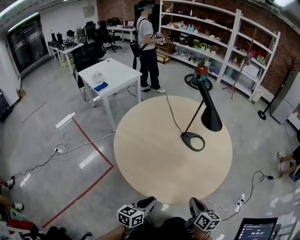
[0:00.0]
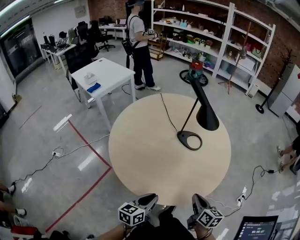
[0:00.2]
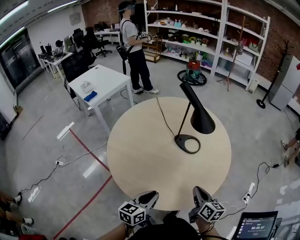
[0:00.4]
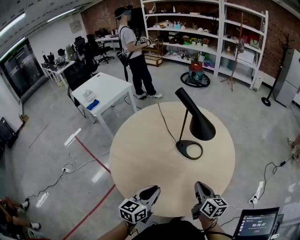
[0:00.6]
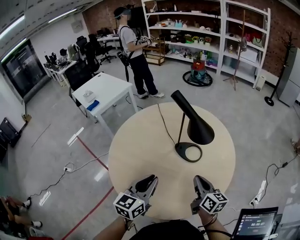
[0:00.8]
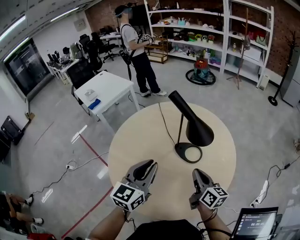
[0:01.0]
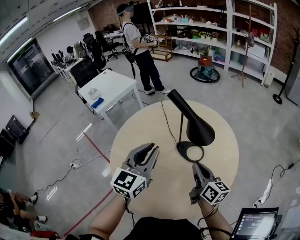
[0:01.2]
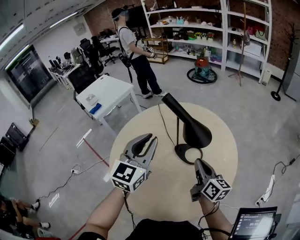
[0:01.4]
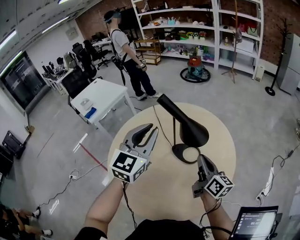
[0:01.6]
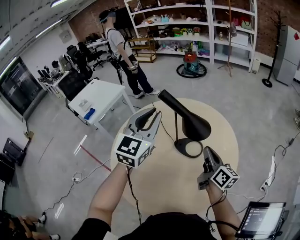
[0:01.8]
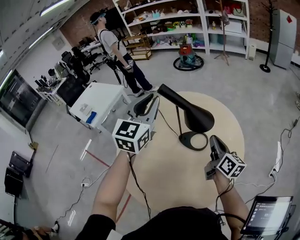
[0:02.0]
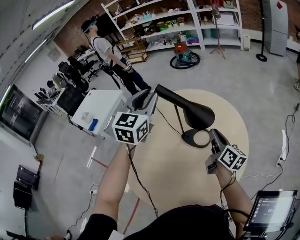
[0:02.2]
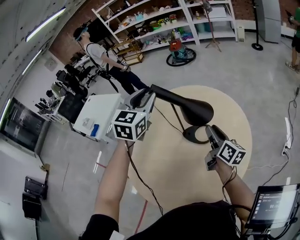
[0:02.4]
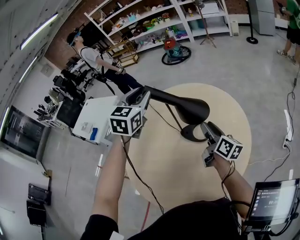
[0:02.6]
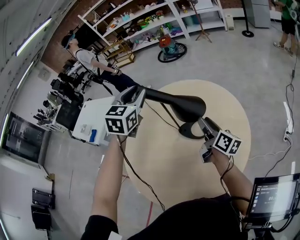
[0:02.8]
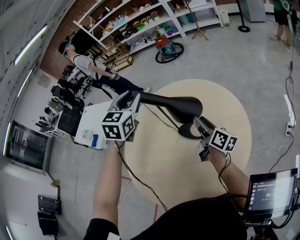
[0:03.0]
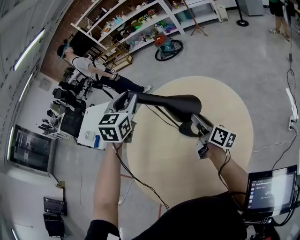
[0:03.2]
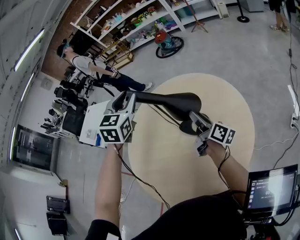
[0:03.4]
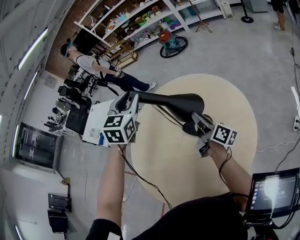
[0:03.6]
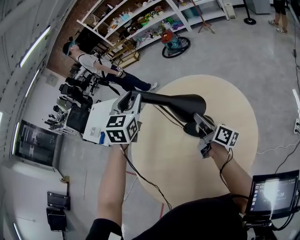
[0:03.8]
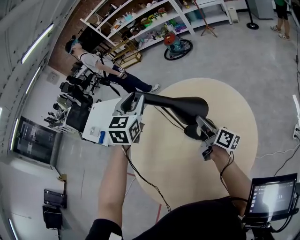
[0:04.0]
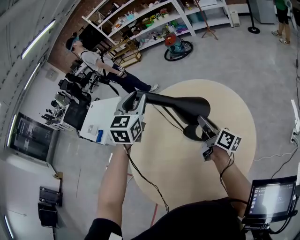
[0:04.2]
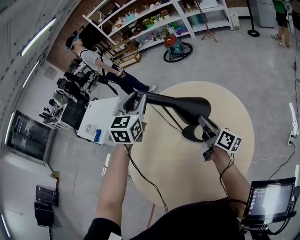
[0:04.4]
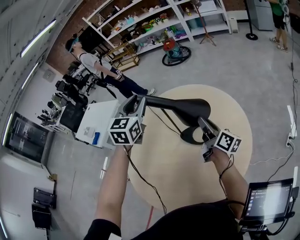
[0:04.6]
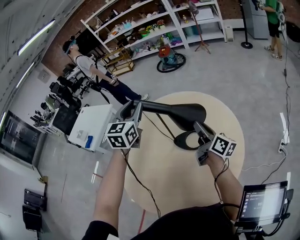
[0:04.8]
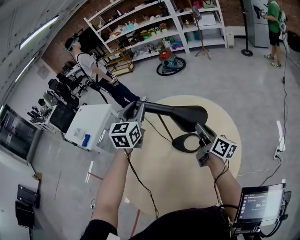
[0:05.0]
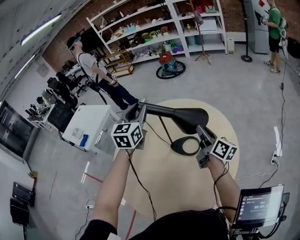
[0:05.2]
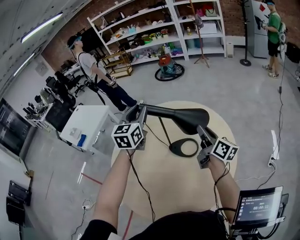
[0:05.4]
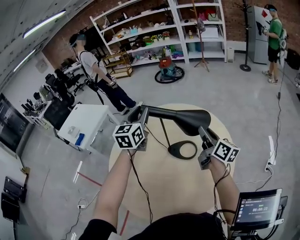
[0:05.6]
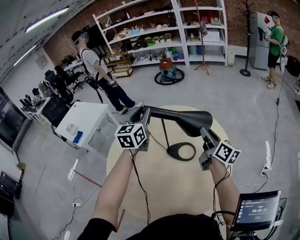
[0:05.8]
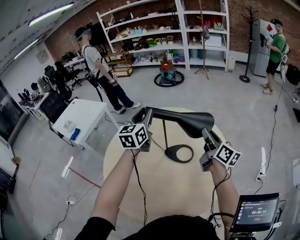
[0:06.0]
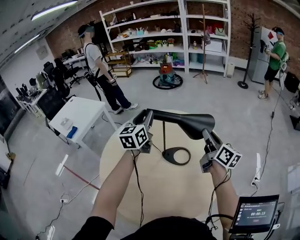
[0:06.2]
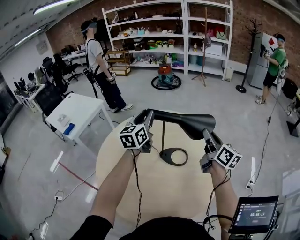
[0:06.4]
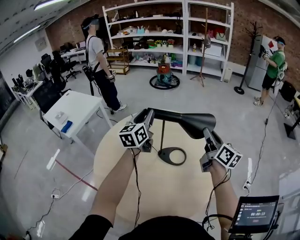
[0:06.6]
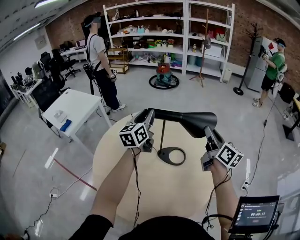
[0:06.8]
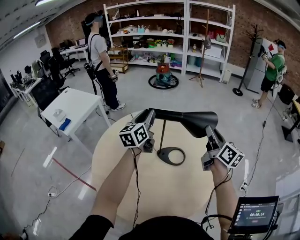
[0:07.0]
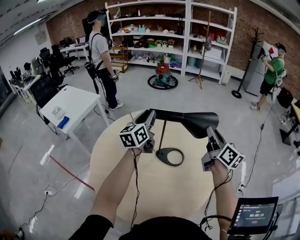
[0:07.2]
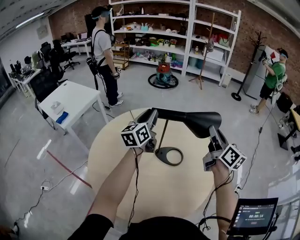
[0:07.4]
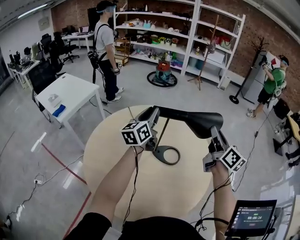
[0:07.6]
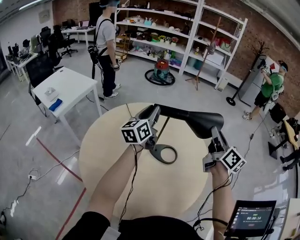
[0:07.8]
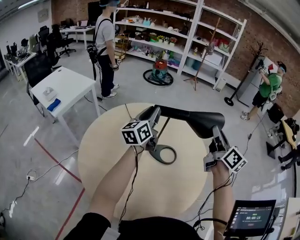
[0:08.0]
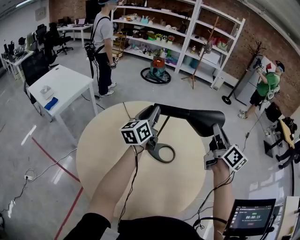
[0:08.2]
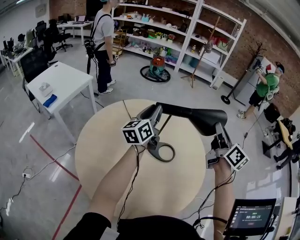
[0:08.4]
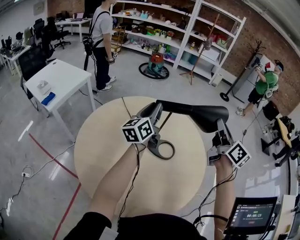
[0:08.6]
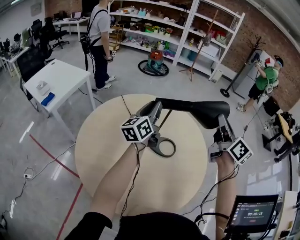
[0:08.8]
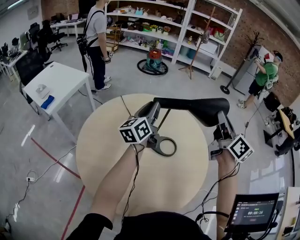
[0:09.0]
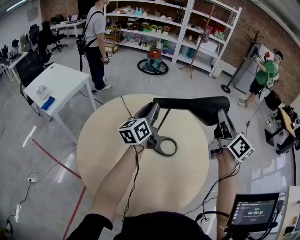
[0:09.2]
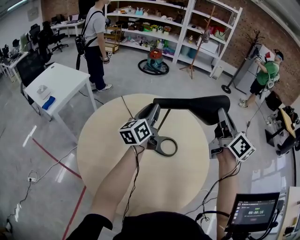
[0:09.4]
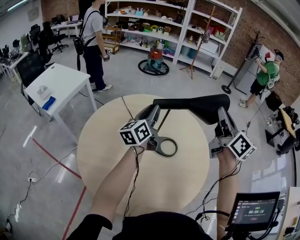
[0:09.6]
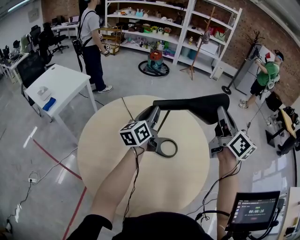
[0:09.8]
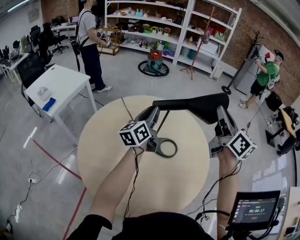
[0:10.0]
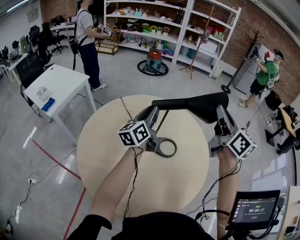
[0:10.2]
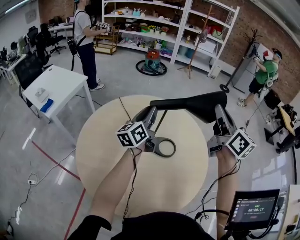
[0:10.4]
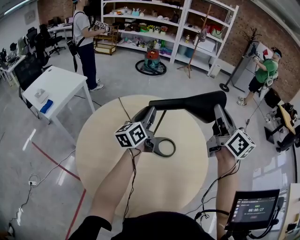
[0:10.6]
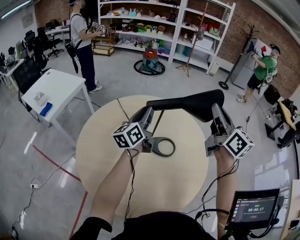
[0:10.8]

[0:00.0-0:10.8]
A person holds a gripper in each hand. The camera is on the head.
0:00.0 to 0:01.6: The grippers both shift forward and upward by some 40 cm. The right gripper swivels some 30 degrees. Meanwhile the left gripper rotates around the line of its fingers by some 50 degrees, clockwise from behind.
0:01.6 to 0:03.0: The left gripper is displaced forward by some 15 cm, while the right gripper travels forward by approximately 5 cm, changes its angle by about 20 degrees, and opens.
0:03.0 to 0:04.6: There are only small adjustments of the grippers.
0:04.6 to 0:06.2: The left gripper shifts some 5 cm downward, and swivels roughly 30 degrees. The right gripper travels upward by approximately 5 cm, and swivels approximately 20 degrees.
0:06.2 to 0:07.8: The left gripper swivels about 20 degrees; the right gripper moves upward, some 10 cm.
0:07.8 to 0:09.2: The right gripper moves upward, some 5 cm.
0:09.2 to 0:10.8: The grippers move only a little.

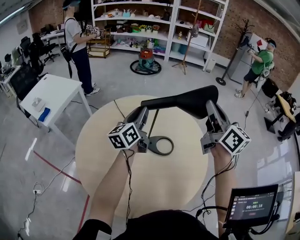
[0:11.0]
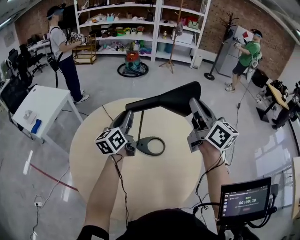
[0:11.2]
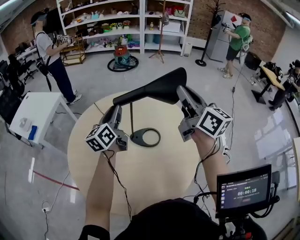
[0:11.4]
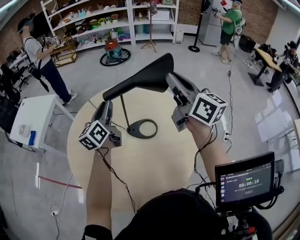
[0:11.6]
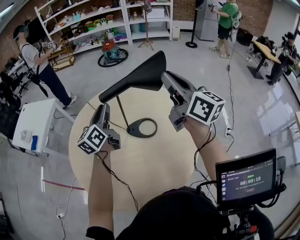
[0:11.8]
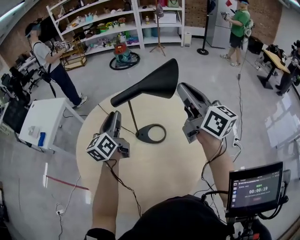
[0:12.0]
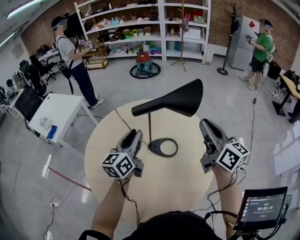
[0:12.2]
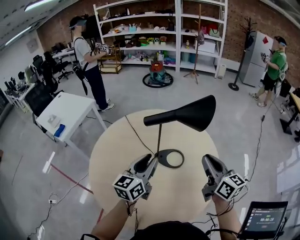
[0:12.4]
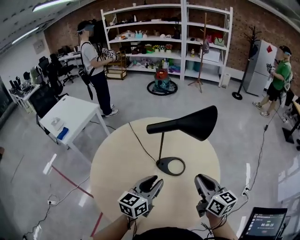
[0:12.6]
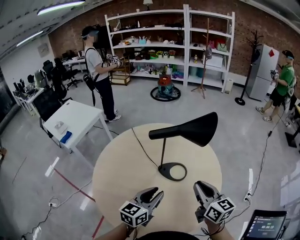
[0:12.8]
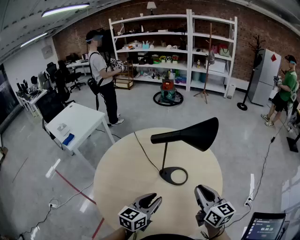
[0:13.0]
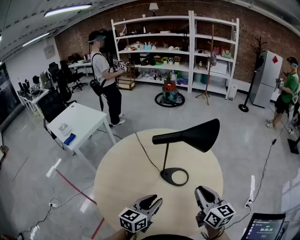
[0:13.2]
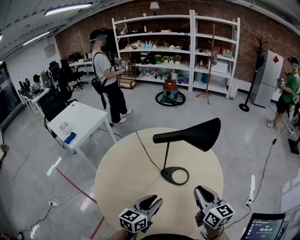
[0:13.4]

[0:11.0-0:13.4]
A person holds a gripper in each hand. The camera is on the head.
0:11.0 to 0:12.2: The left gripper goes roughly 10 cm backward. The right gripper goes some 10 cm backward and downward.
0:12.2 to 0:13.4: The left gripper is displaced backward and downward by roughly 20 cm. Meanwhile the right gripper shifts about 15 cm downward, backward and to the left.

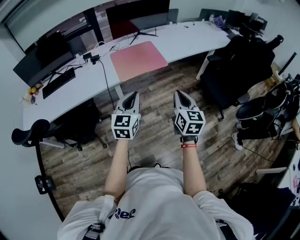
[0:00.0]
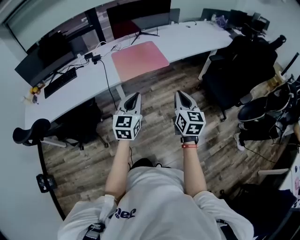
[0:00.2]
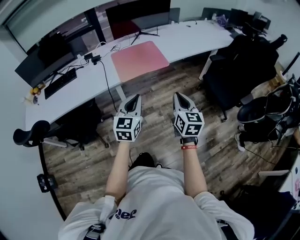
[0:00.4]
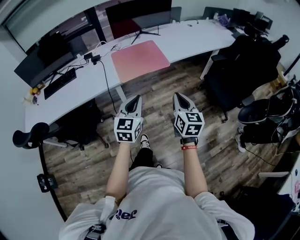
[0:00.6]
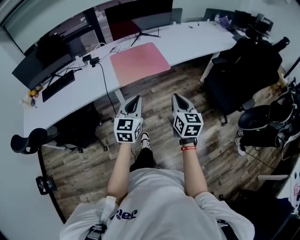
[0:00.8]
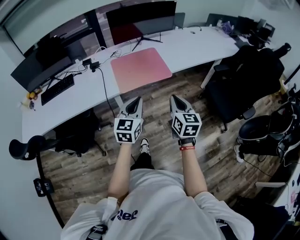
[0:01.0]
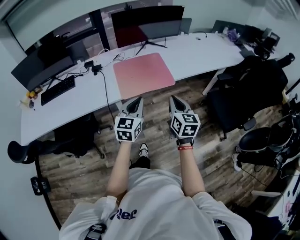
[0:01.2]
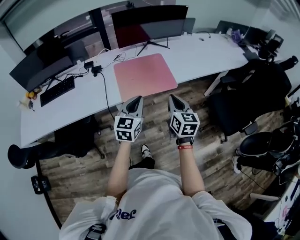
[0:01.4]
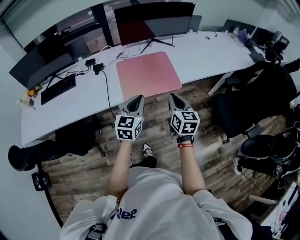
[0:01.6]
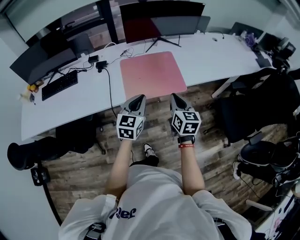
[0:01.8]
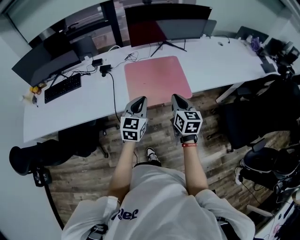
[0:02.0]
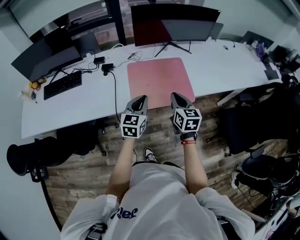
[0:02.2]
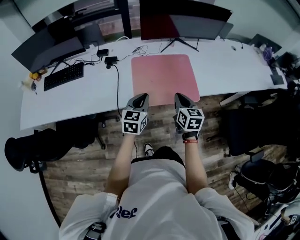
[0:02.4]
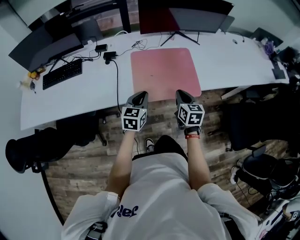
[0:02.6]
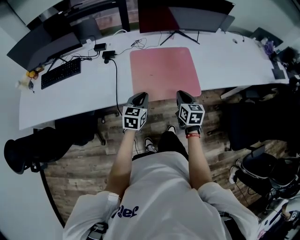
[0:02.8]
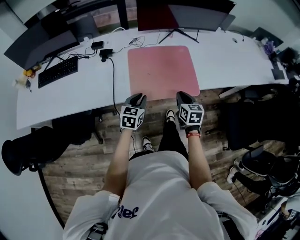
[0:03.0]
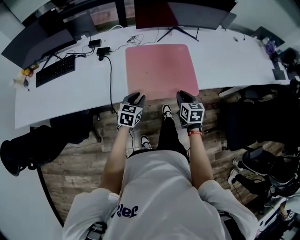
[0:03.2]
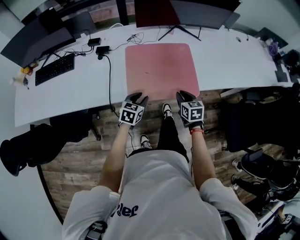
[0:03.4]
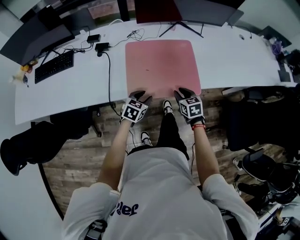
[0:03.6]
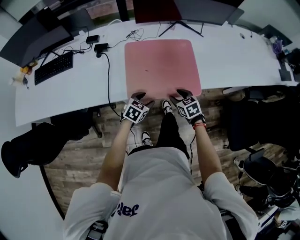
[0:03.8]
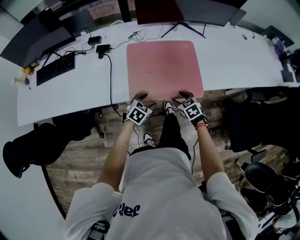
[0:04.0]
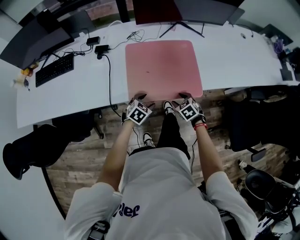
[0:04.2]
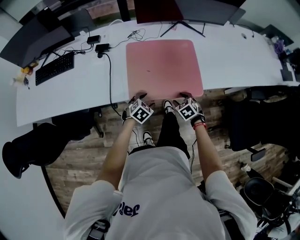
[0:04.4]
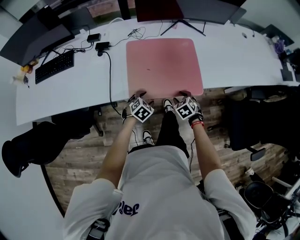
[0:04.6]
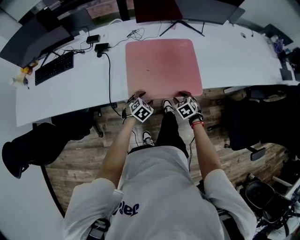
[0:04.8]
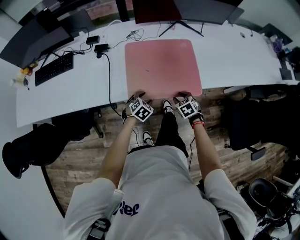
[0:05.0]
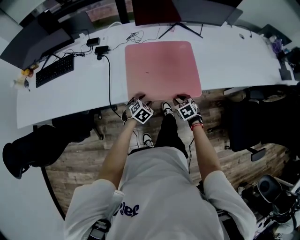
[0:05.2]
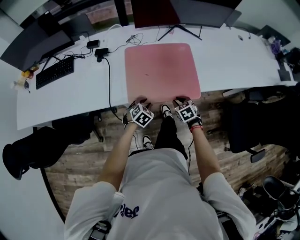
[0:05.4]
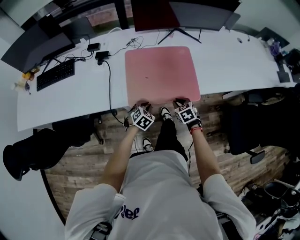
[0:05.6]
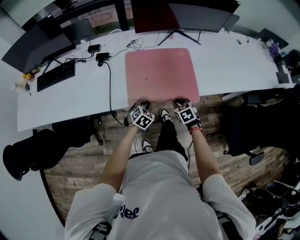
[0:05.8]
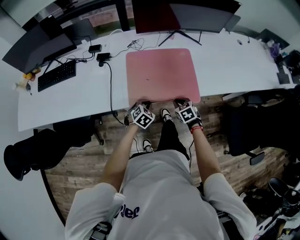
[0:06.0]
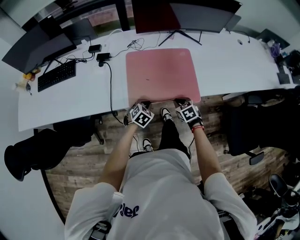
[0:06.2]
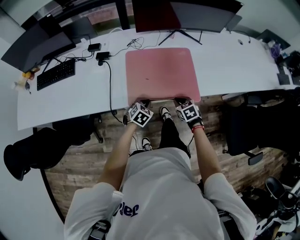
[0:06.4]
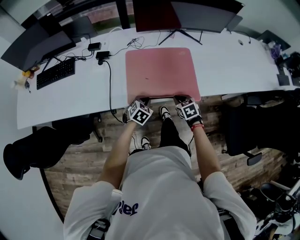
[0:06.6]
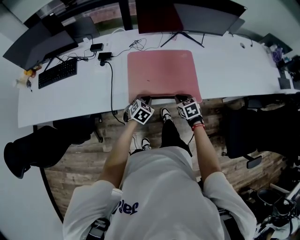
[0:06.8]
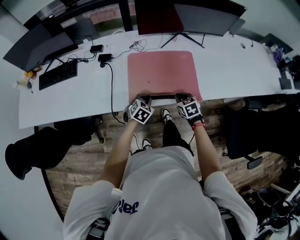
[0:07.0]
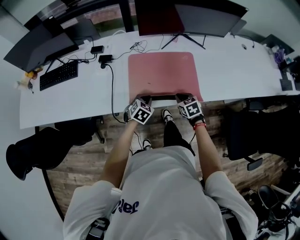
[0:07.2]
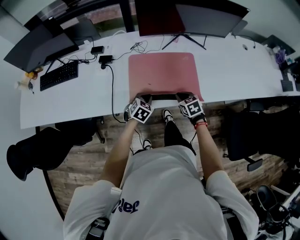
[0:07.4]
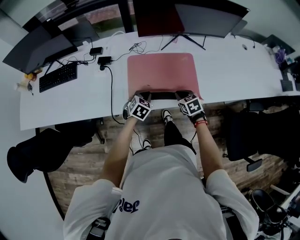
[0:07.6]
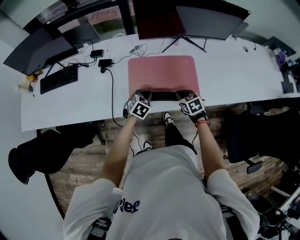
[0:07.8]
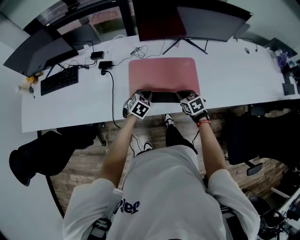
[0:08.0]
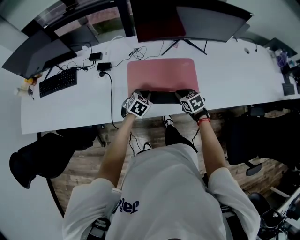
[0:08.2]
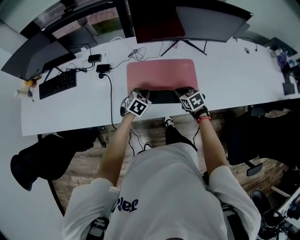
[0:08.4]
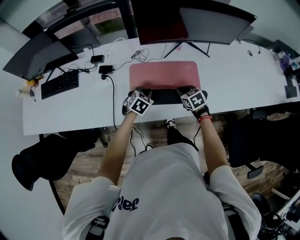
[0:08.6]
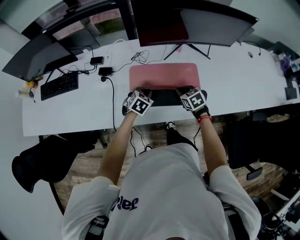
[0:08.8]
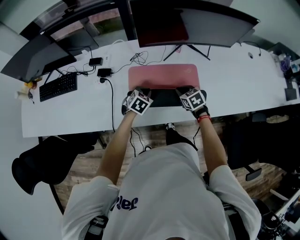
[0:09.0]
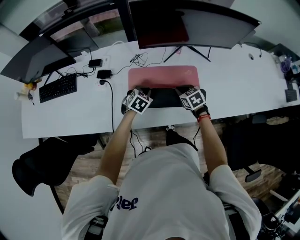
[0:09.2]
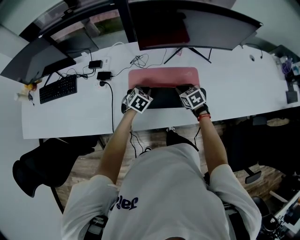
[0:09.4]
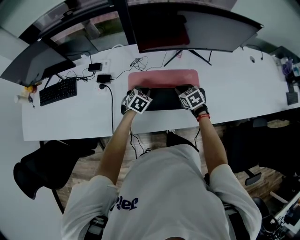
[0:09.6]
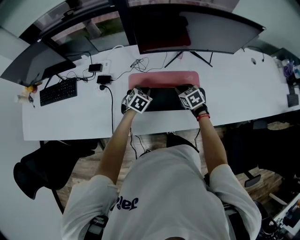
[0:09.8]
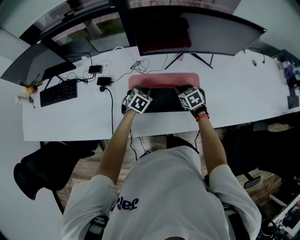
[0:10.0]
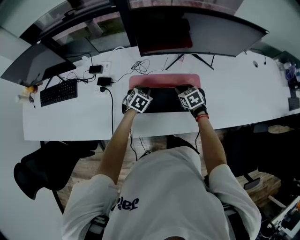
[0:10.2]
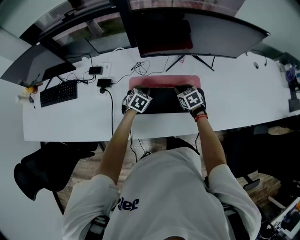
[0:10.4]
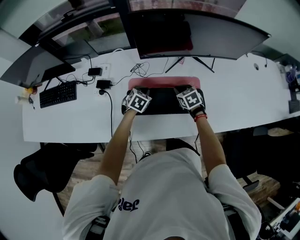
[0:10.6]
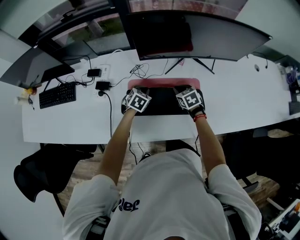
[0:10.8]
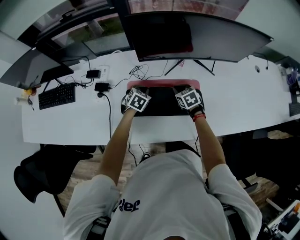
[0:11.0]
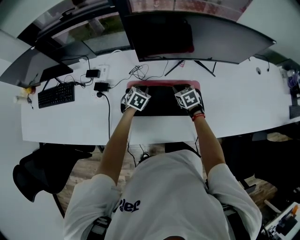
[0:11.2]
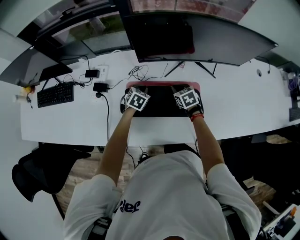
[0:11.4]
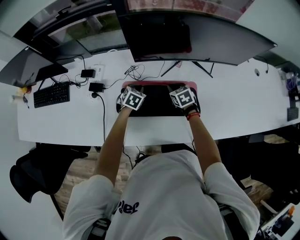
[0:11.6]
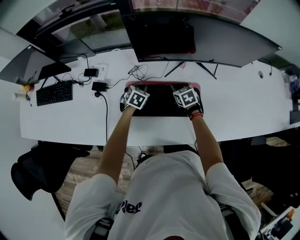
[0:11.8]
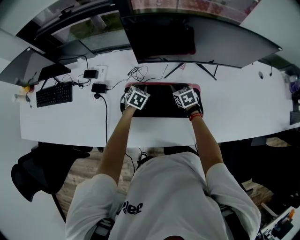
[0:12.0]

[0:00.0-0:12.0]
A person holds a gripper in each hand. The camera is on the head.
0:00.0 to 0:01.6: Both grippers move forward, some 30 cm.
0:01.6 to 0:03.0: The left gripper shifts about 25 cm downward, forward and to the left. The right gripper travels forward and downward by roughly 25 cm.
0:03.0 to 0:04.4: The grippers both shift downward by about 15 cm. The right gripper swivels approximately 50 degrees, and opens up, while the left gripper changes its angle by approximately 30 degrees, and opens up.
0:04.4 to 0:06.0: The right gripper closes. Meanwhile the left gripper closes its fingers.
0:06.0 to 0:07.6: Both grippers travel together forward and upward, some 10 cm.
0:07.6 to 0:09.0: Both grippers travel together forward, roughly 10 cm.
0:09.0 to 0:10.4: The grippers both shift forward by roughly 10 cm.
0:10.4 to 0:12.0: Both grippers move forward, approximately 10 cm.
